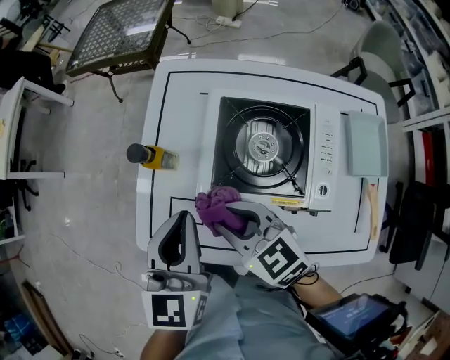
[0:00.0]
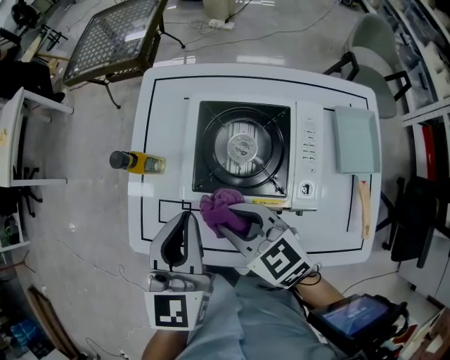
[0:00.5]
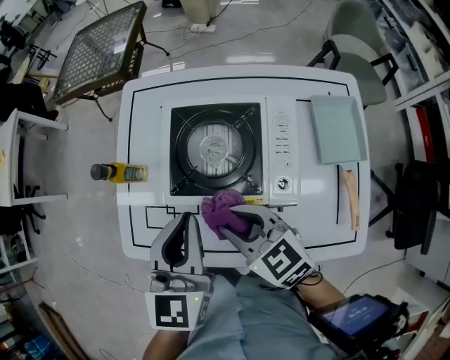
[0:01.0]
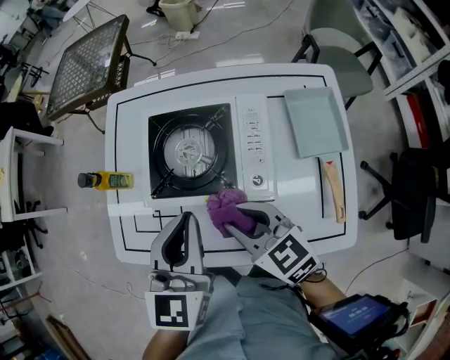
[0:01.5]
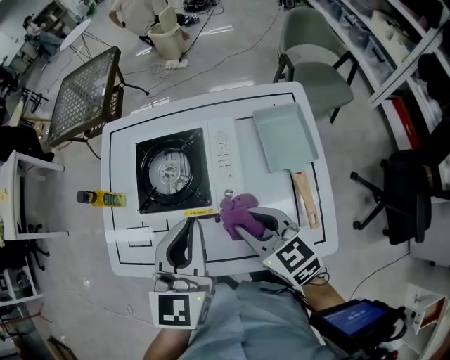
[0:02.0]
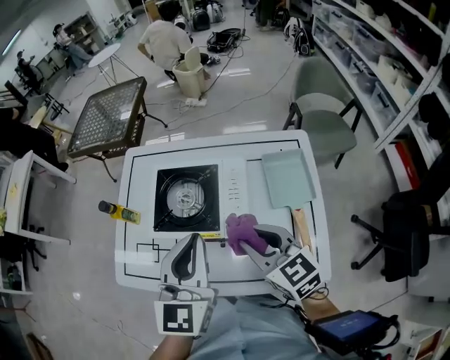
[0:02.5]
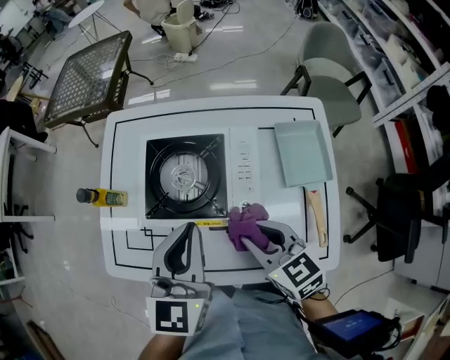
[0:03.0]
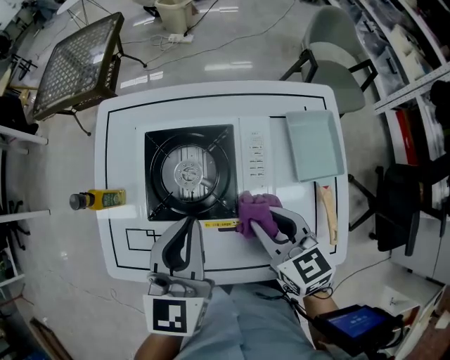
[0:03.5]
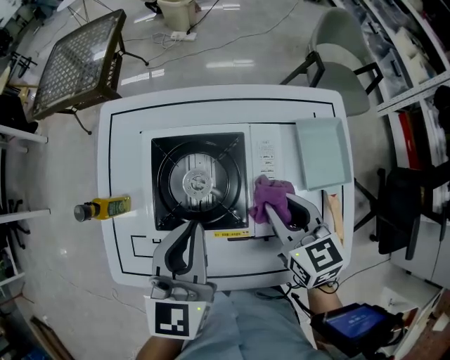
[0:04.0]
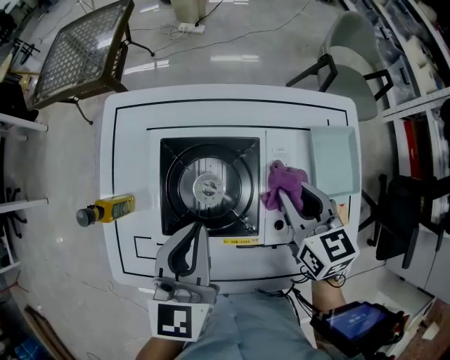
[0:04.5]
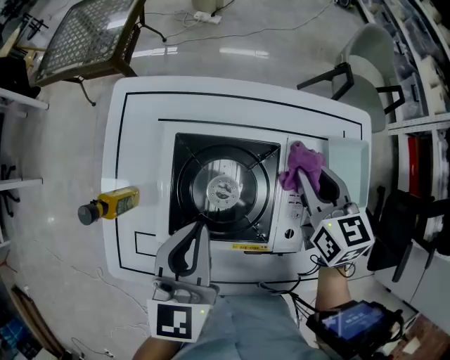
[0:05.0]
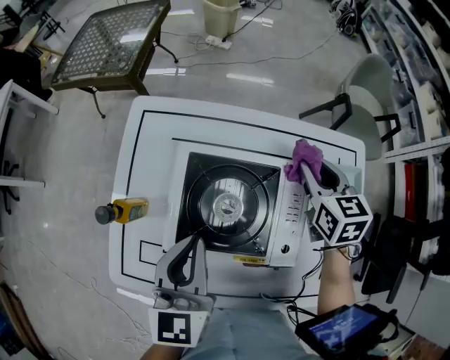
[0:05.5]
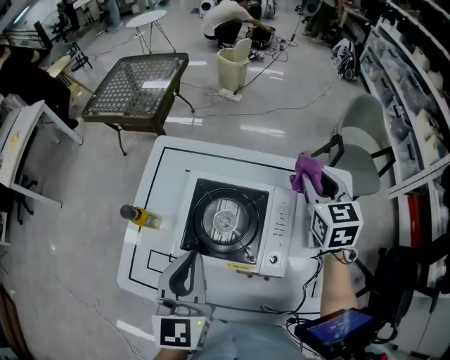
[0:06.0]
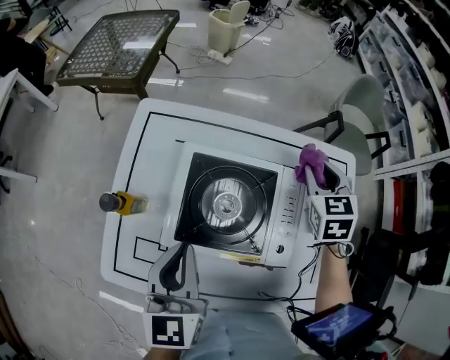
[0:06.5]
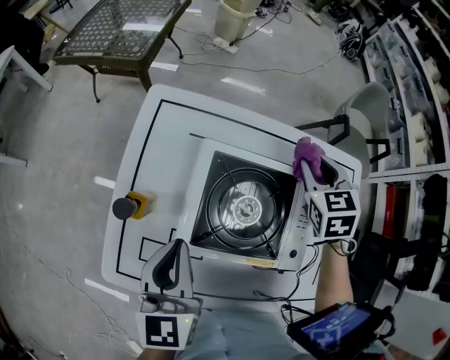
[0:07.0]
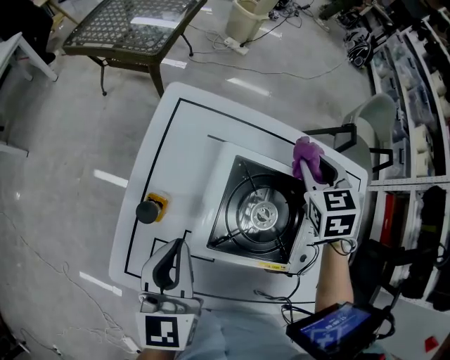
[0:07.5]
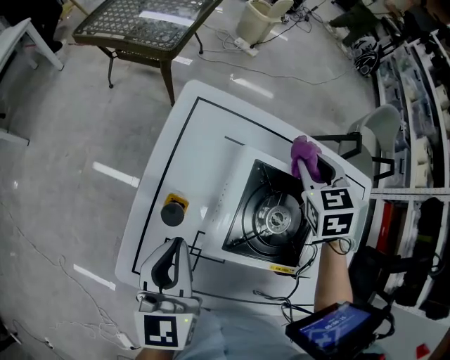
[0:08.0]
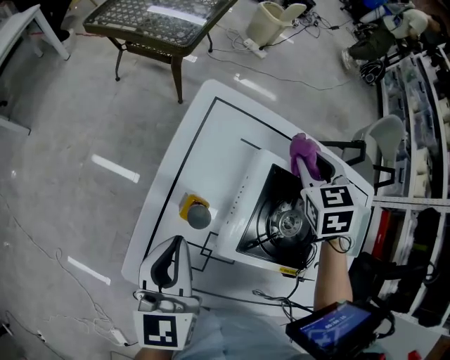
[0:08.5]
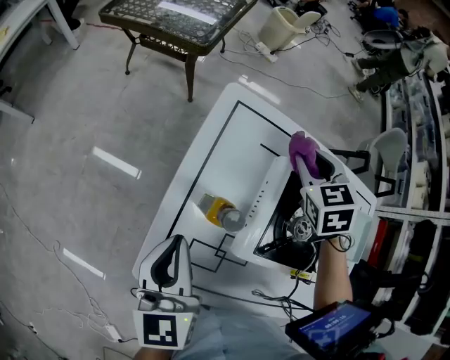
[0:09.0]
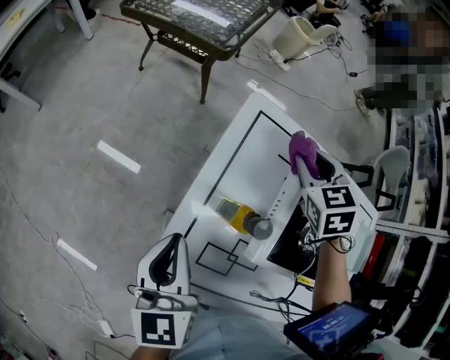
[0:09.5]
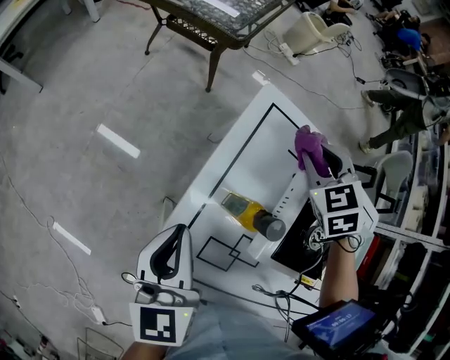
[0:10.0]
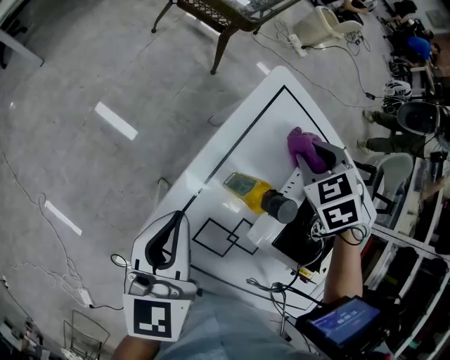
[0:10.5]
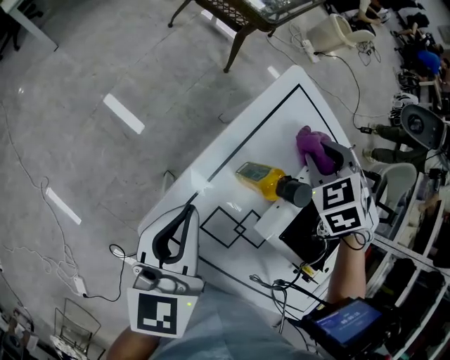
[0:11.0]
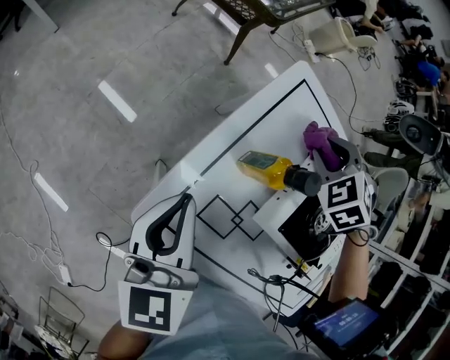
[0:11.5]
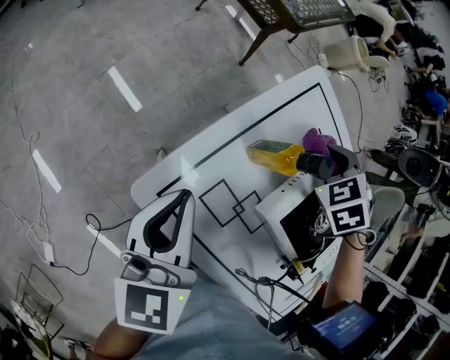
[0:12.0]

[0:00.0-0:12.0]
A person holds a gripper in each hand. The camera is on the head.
0:00.0 to 0:02.0: Both grippers move to the right and backward, some 25 cm.
0:02.0 to 0:04.0: The right gripper travels forward by about 10 cm; the left gripper shifts approximately 15 cm forward, to the left and downward.
0:04.0 to 0:06.0: The right gripper goes about 20 cm forward and upward, while the left gripper shifts approximately 10 cm upward and to the left.
0:06.0 to 0:08.0: Both grippers travel together to the left and downward, some 25 cm. The right gripper swivels some 30 degrees.
0:08.0 to 0:10.0: The two grippers go about 20 cm to the left. The right gripper rotates roughly 30 degrees.
0:10.0 to 0:12.0: The two grippers go approximately 10 cm backward. The right gripper rotates approximately 30 degrees.

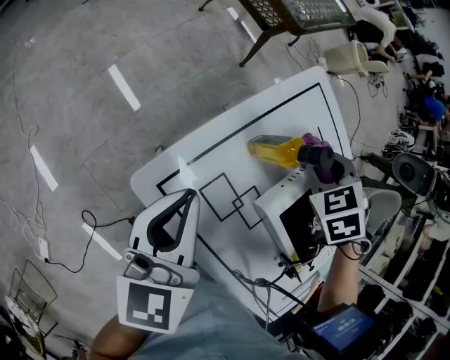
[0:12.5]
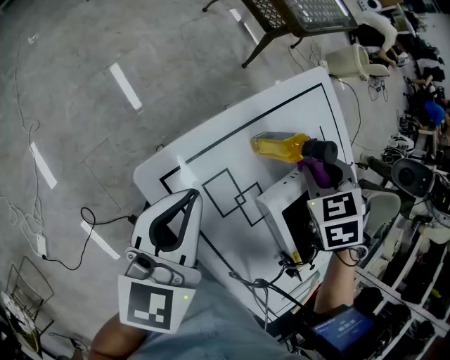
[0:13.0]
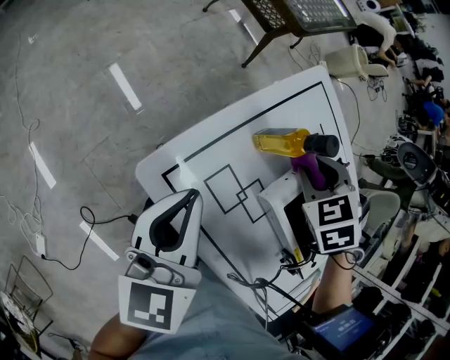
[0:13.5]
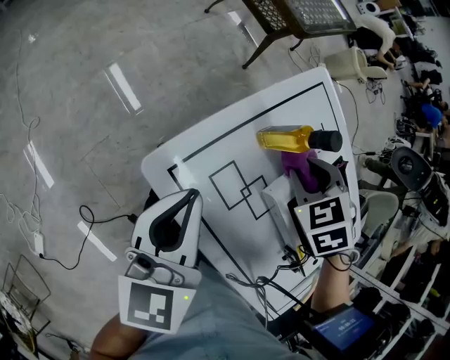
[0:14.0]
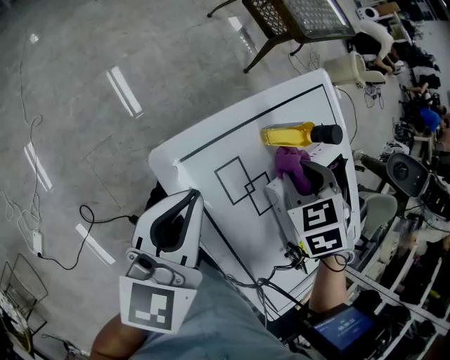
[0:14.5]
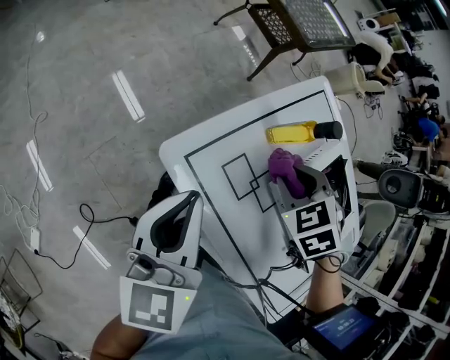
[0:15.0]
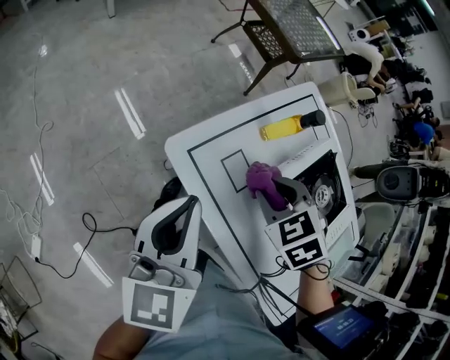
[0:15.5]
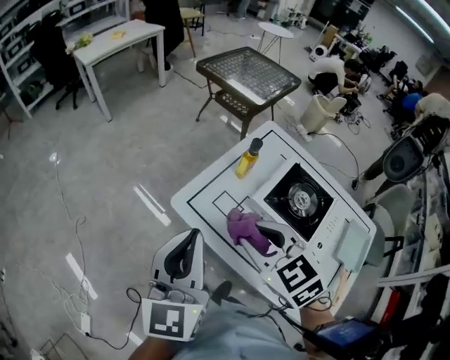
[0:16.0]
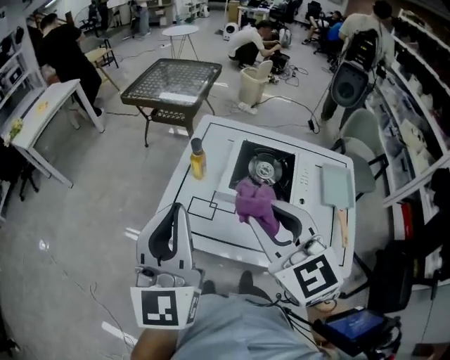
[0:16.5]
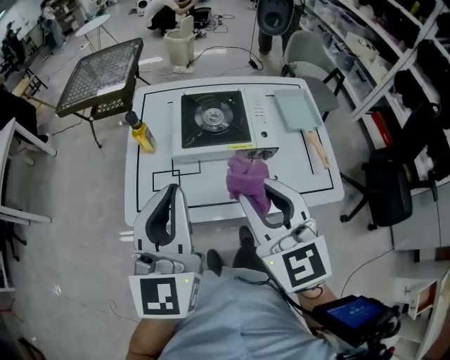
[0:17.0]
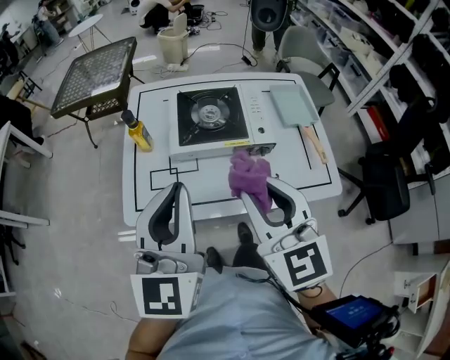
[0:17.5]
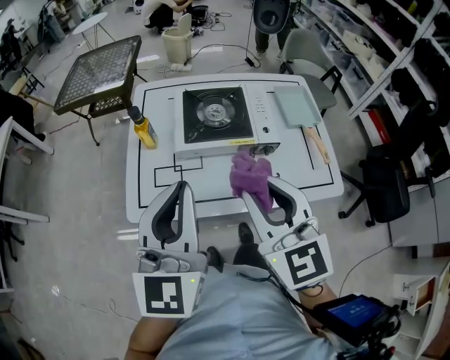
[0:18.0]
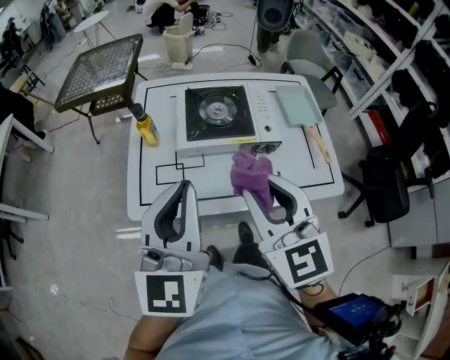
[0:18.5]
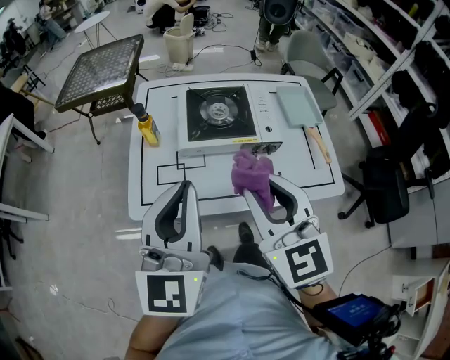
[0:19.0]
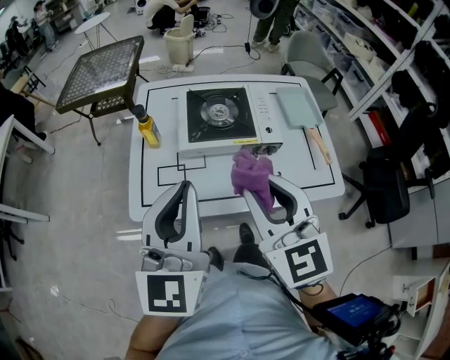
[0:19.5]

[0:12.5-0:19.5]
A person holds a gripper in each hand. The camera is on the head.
0:12.5 to 0:14.5: The right gripper shifts about 10 cm backward and to the left. The left gripper is displaced backward by roughly 5 cm.
0:14.5 to 0:16.0: The left gripper moves upward and backward, about 25 cm, and swivels approximately 20 degrees. Meanwhile the right gripper goes approximately 30 cm backward and upward, and swivels roughly 40 degrees.
0:16.0 to 0:17.5: The left gripper shifts by about 10 cm, and turns by approximately 50 degrees. The right gripper shifts by some 15 cm, and swivels some 70 degrees.
0:17.5 to 0:19.5: There are only small adjustments of the grippers.

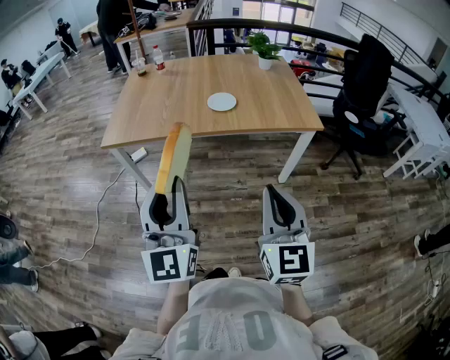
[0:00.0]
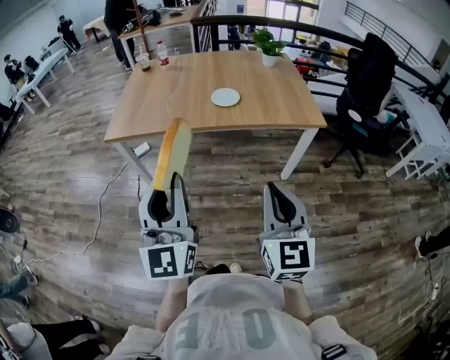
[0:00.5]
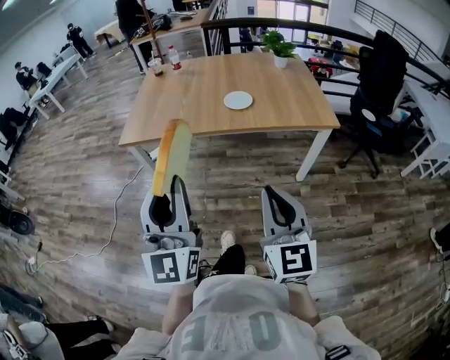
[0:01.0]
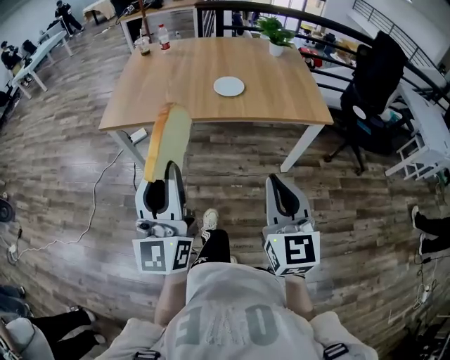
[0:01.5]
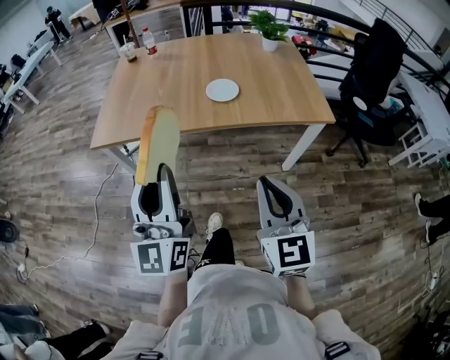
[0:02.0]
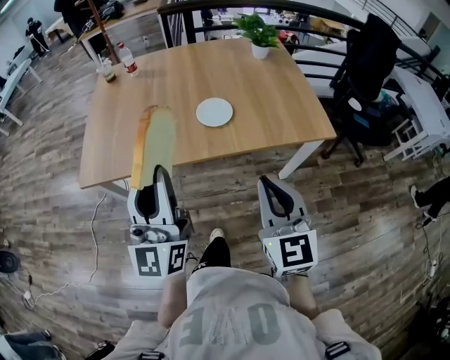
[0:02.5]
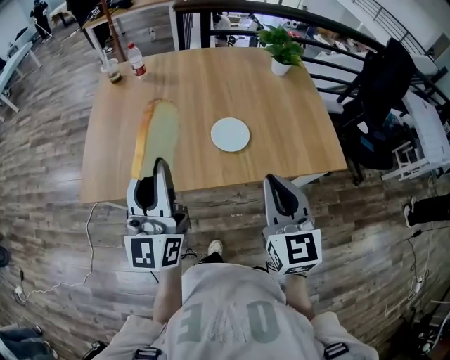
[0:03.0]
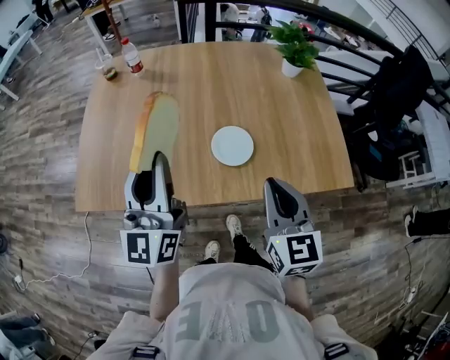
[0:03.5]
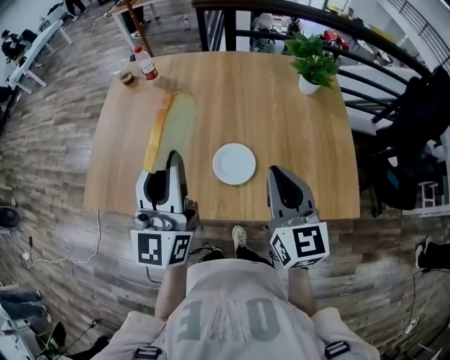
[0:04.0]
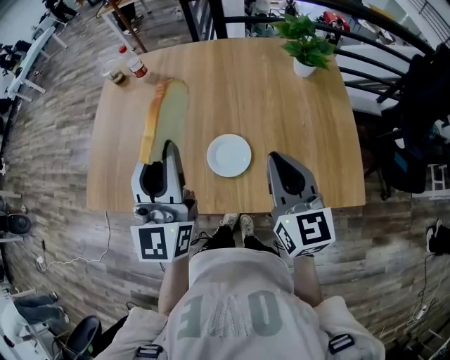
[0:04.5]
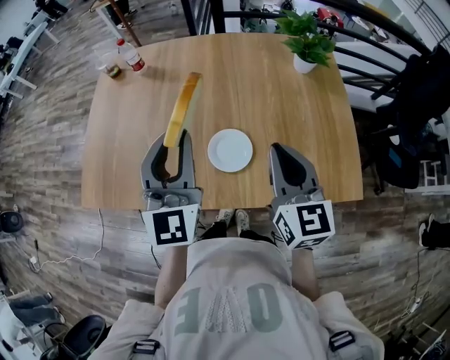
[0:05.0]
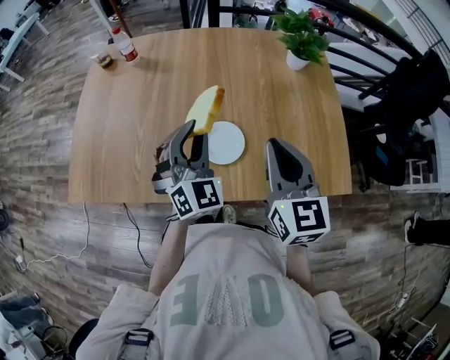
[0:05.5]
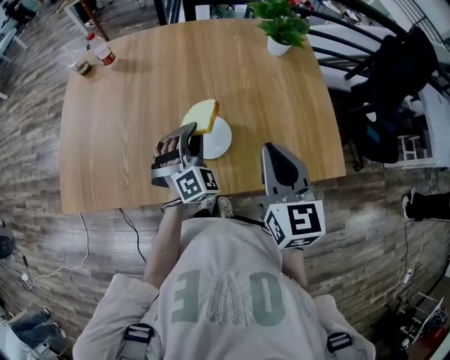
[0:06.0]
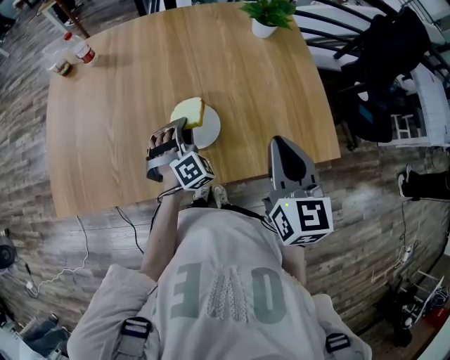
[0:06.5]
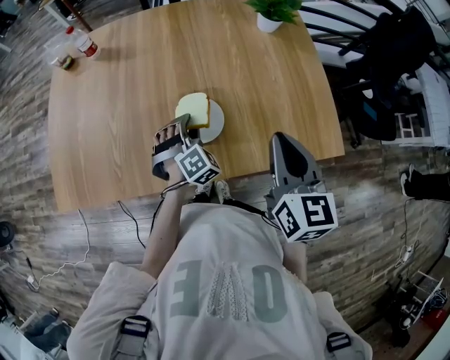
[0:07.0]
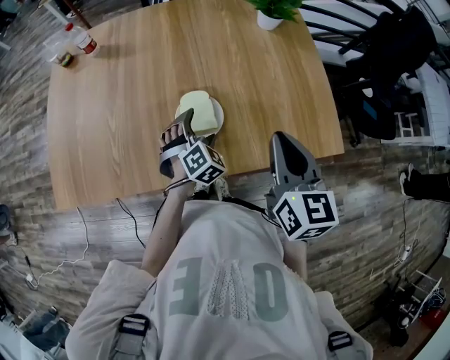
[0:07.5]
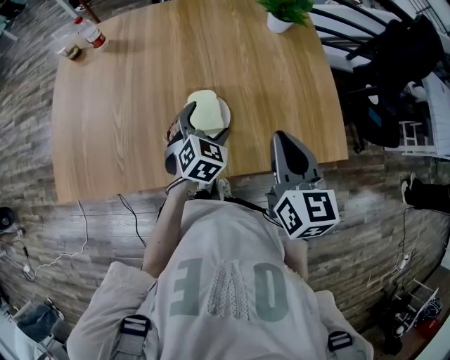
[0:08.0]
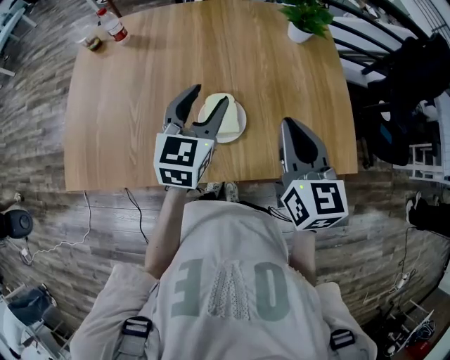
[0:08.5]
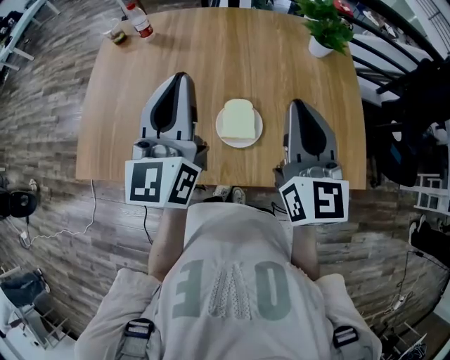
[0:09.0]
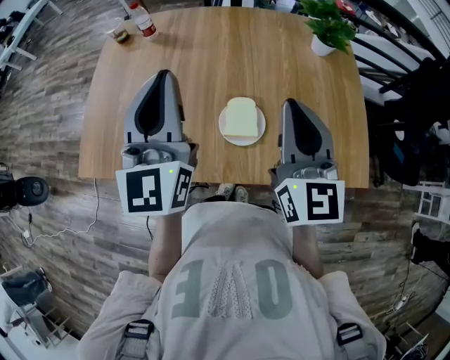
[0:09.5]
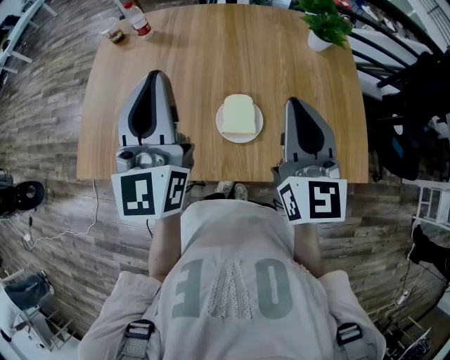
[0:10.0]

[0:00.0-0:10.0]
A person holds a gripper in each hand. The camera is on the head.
0:00.0 to 0:02.0: The grippers both shift forward by approximately 10 cm.
0:02.0 to 0:04.0: The two grippers travel together, forward, about 40 cm.
0:04.0 to 0:06.0: The left gripper goes roughly 25 cm downward and to the right, and twists roughly 60 degrees clockwise, seen from behind.
0:06.0 to 0:08.0: The left gripper goes roughly 5 cm to the right, turns by approximately 40 degrees, and opens its fingers.
0:08.0 to 0:10.0: The left gripper heads upward and to the left, covering roughly 35 cm, angles its fingers upward, by roughly 60 degrees, and closes its fingers; the right gripper moves upward, to the left and forward, about 10 cm, and changes its angle by roughly 20 degrees.
